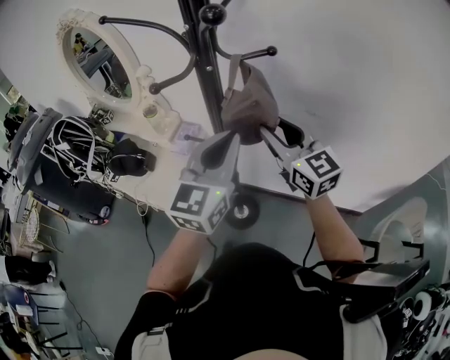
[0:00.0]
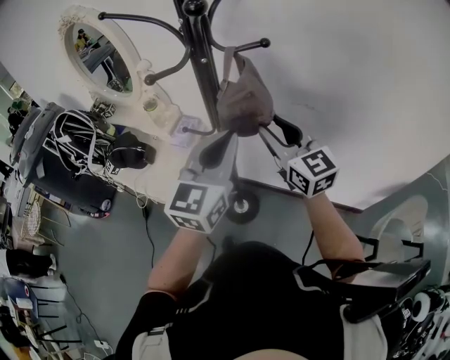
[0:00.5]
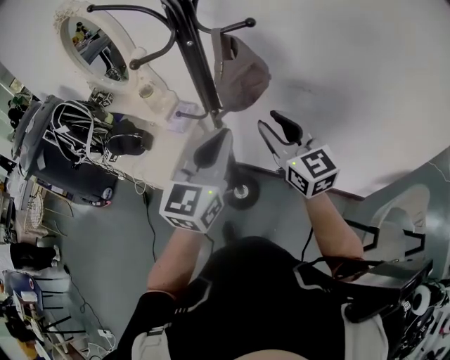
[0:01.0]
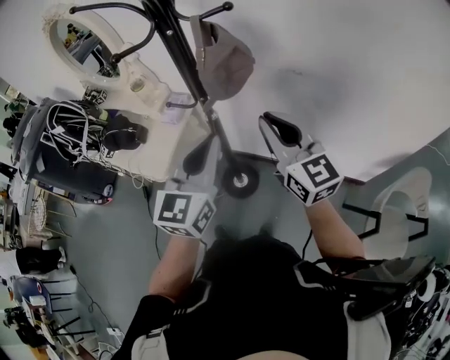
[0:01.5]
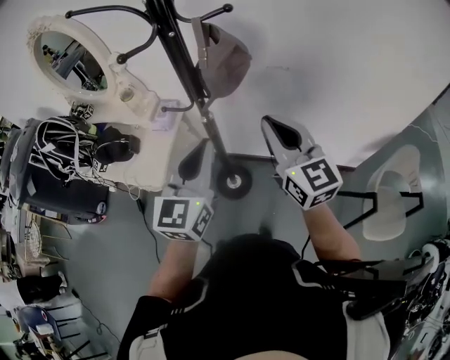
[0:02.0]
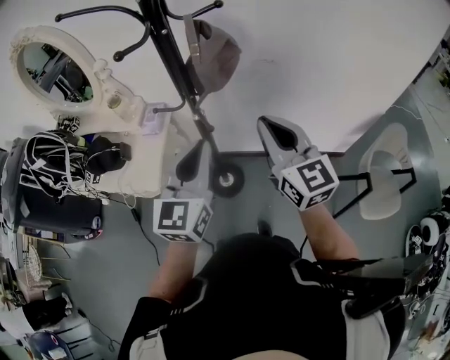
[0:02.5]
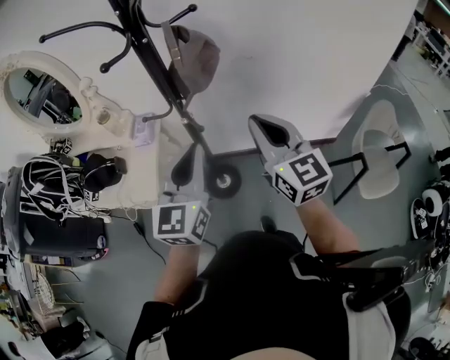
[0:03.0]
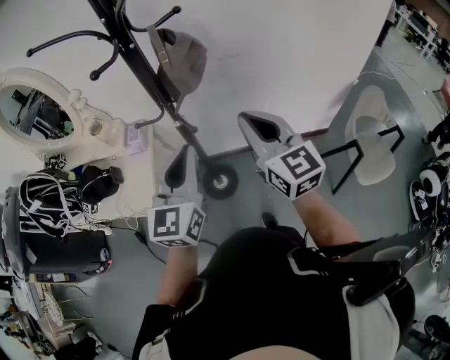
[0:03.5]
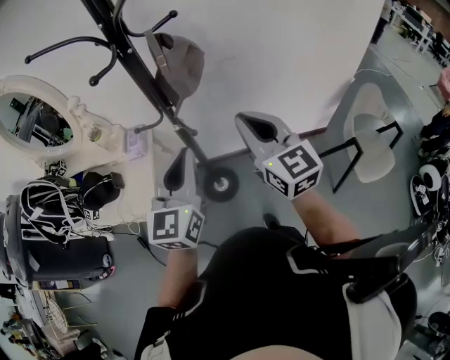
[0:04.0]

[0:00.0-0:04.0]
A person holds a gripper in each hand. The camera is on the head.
0:00.0 to 0:02.0: The left gripper heads backward and downward, covering about 10 cm. Meanwhile the right gripper goes about 15 cm backward, and closes up.
0:02.0 to 0:04.0: The right gripper travels backward by some 5 cm.

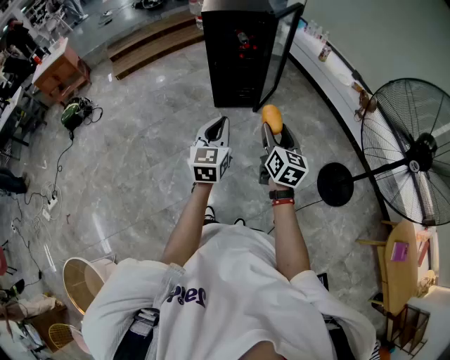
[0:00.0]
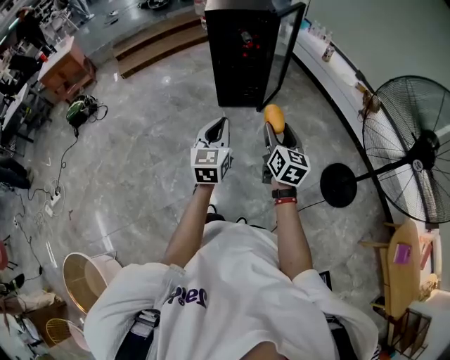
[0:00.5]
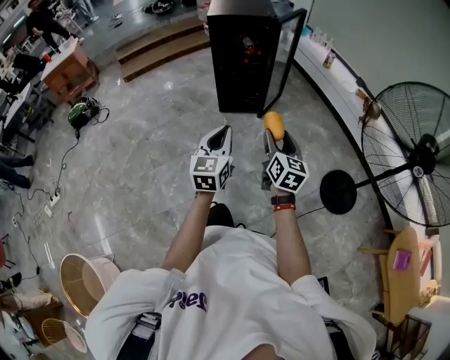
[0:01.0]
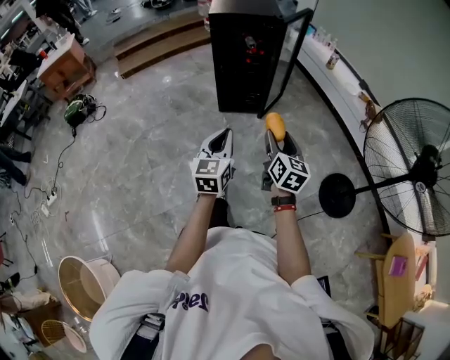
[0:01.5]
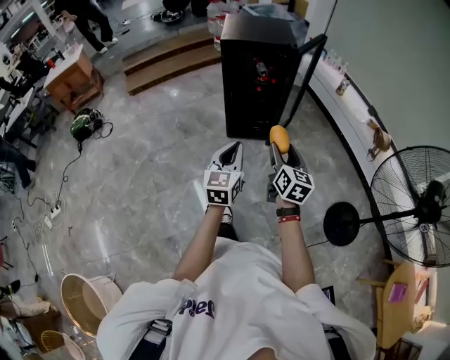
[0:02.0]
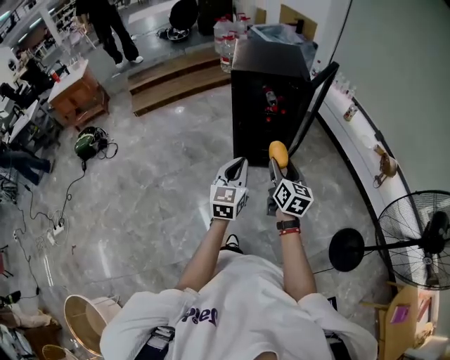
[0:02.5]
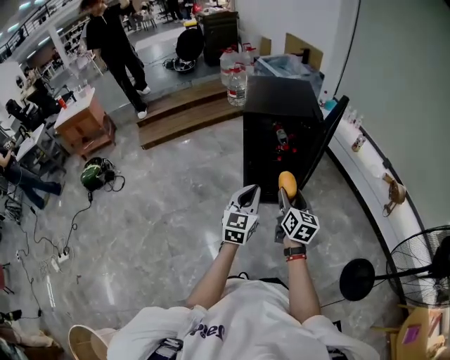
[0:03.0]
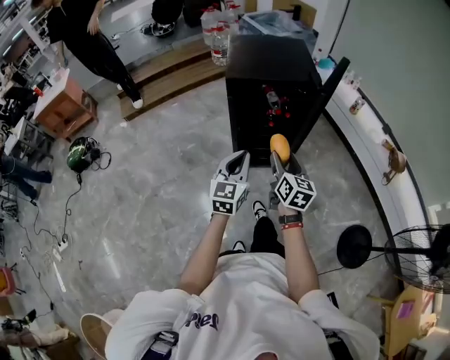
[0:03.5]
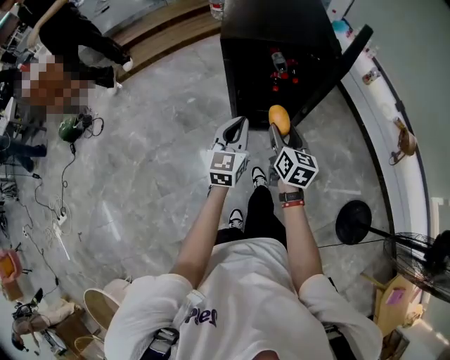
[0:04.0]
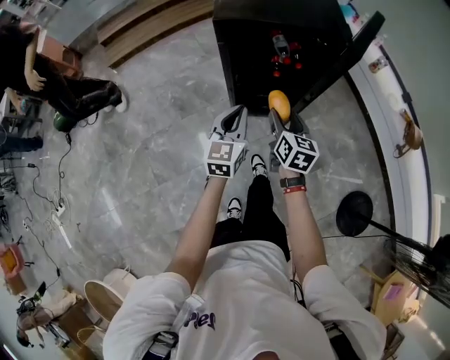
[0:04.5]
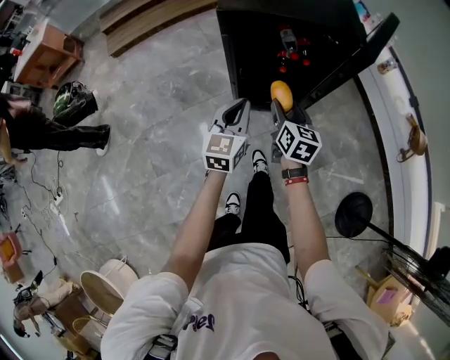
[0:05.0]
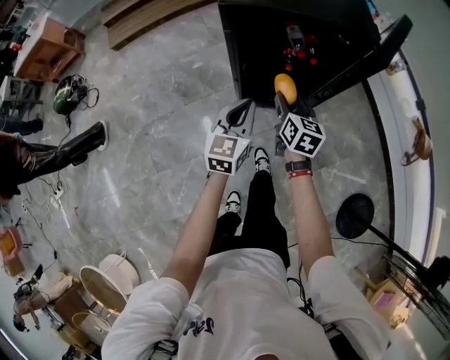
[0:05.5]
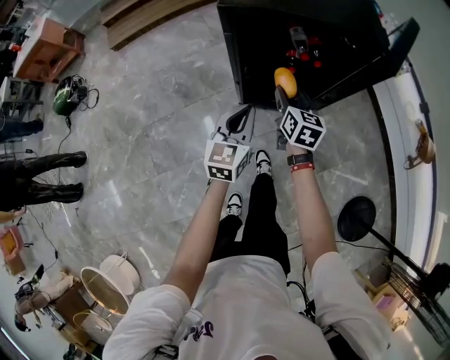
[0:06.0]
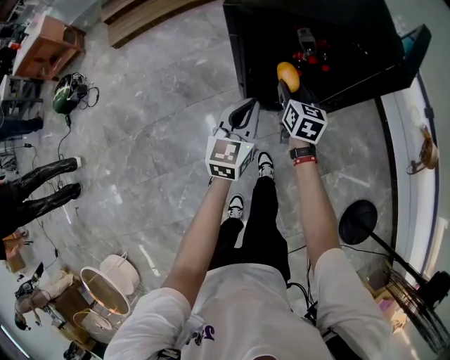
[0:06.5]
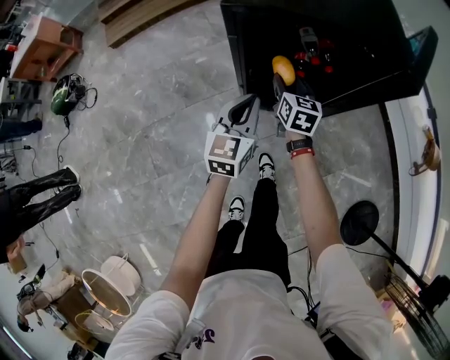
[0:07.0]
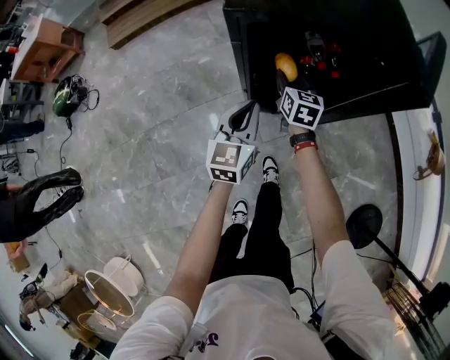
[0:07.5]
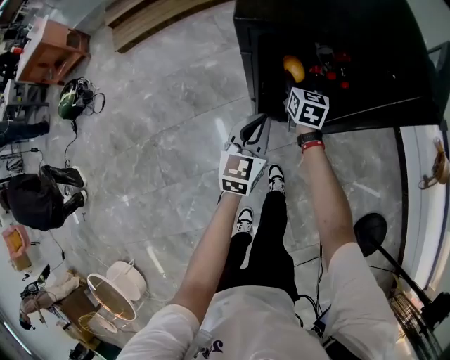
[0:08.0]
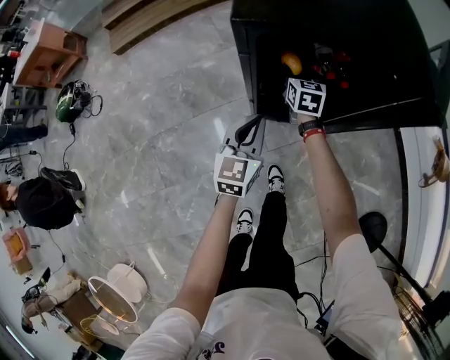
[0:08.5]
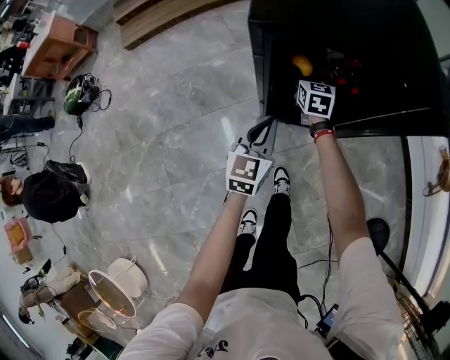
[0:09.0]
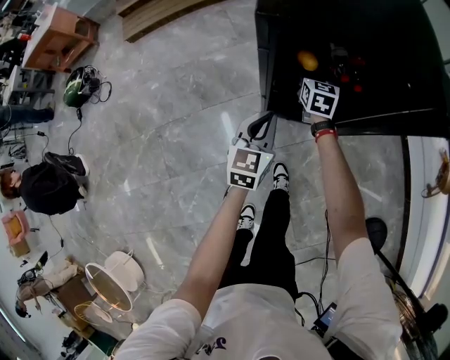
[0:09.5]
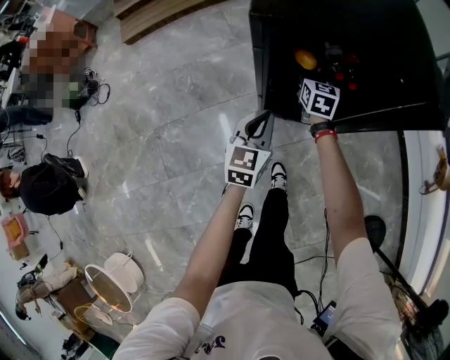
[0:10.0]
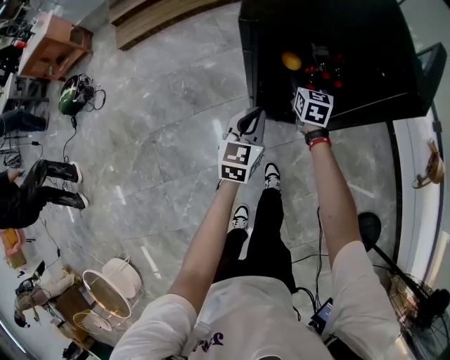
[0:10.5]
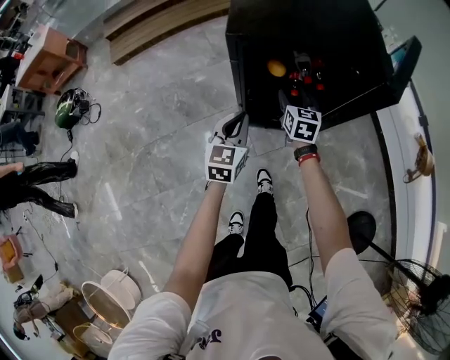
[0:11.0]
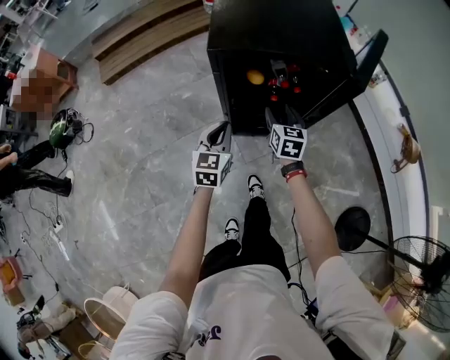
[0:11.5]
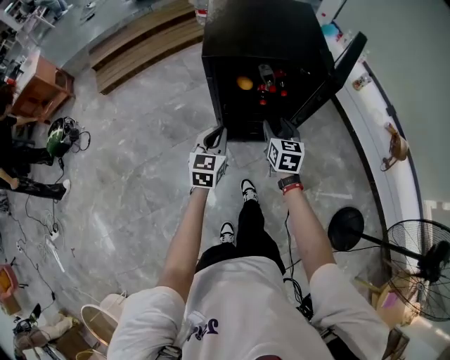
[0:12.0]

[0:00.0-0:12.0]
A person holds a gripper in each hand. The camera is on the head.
0:00.0 to 0:02.0: Both grippers move forward, about 20 cm.
0:02.0 to 0:04.0: Both grippers are carried forward, roughly 40 cm.
0:04.0 to 0:06.0: The right gripper moves forward and downward, roughly 25 cm. The left gripper goes roughly 15 cm downward and forward.
0:06.0 to 0:08.0: The right gripper goes some 20 cm forward and downward, while the left gripper is displaced forward and downward by some 10 cm.
0:08.0 to 0:10.0: The grippers stay close to where they were, moving slightly.
0:10.0 to 0:12.0: The right gripper heads backward and upward, covering approximately 30 cm. Meanwhile the left gripper is displaced upward and backward by about 20 cm.

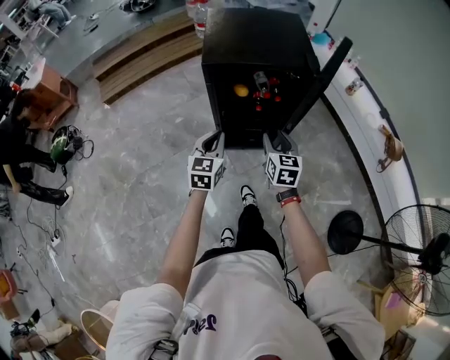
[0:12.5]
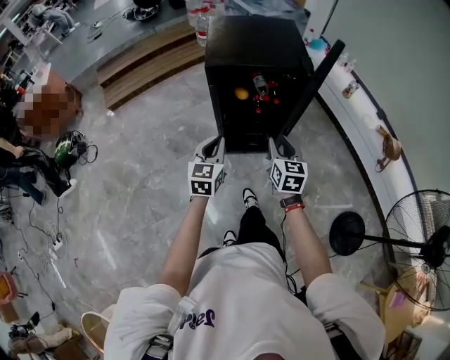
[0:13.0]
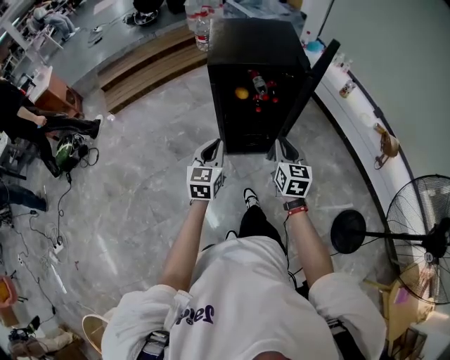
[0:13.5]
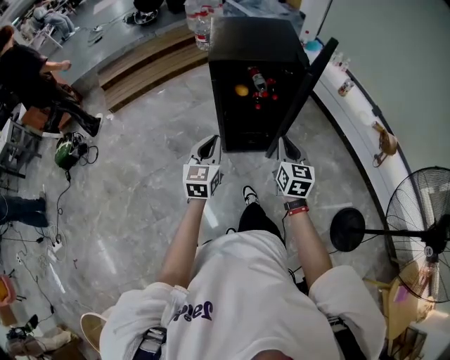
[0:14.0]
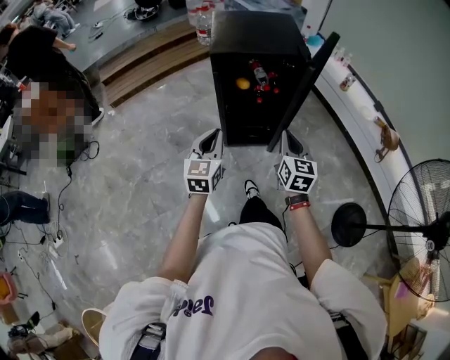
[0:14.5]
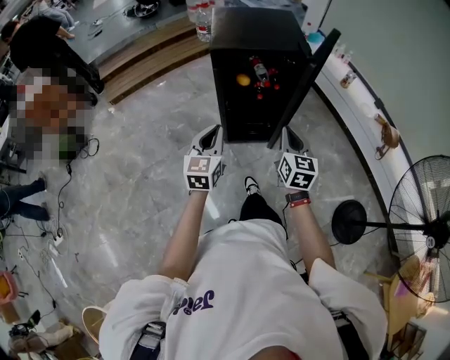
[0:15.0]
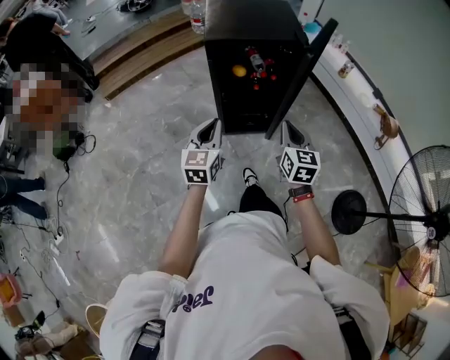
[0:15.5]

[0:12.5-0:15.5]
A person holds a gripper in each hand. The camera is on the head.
0:12.5 to 0:14.0: Both grippers move backward and upward, about 15 cm. The right gripper closes.
0:14.0 to 0:15.5: There are only small adjustments of the grippers.

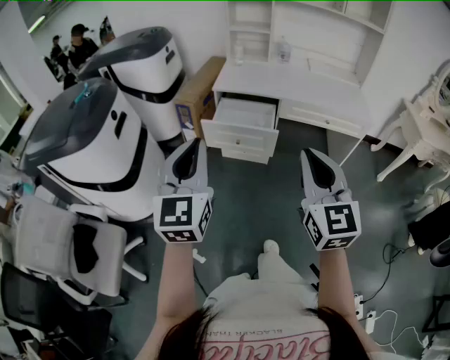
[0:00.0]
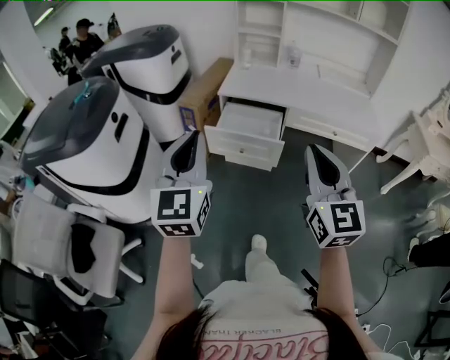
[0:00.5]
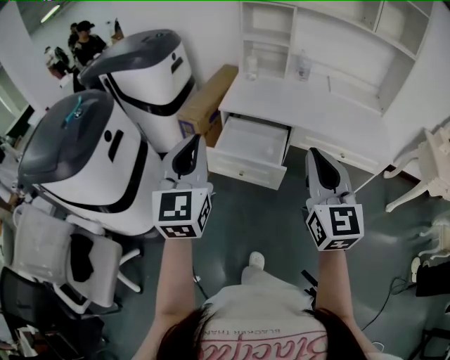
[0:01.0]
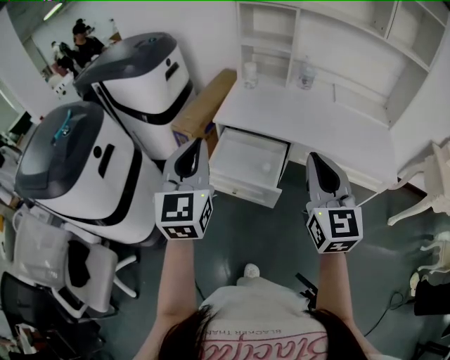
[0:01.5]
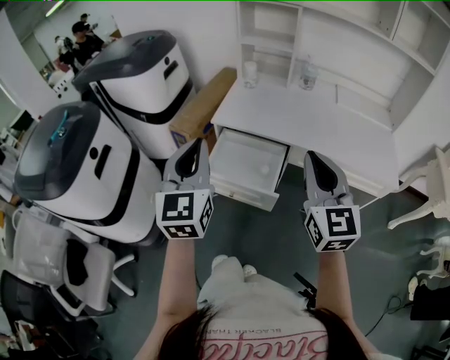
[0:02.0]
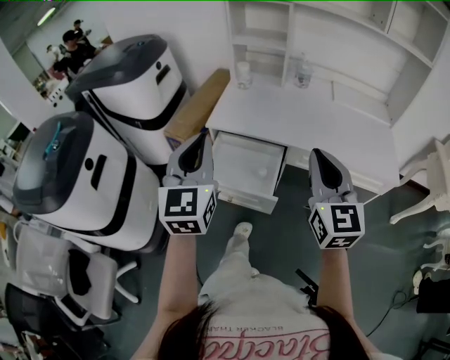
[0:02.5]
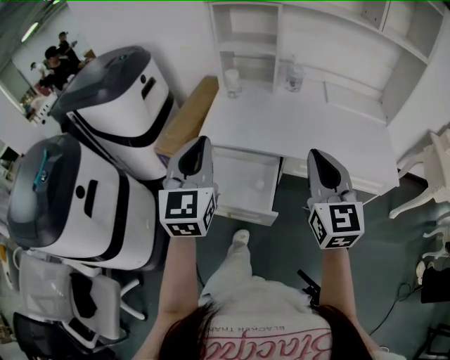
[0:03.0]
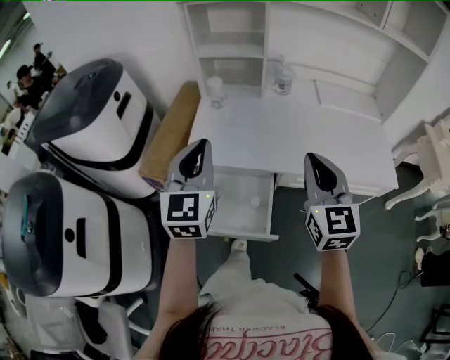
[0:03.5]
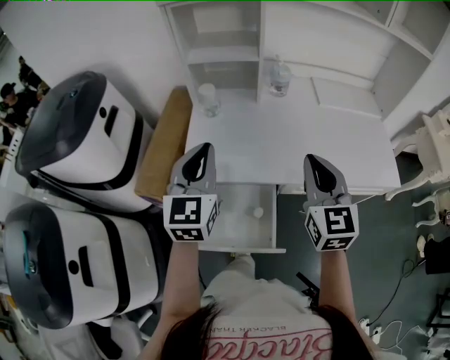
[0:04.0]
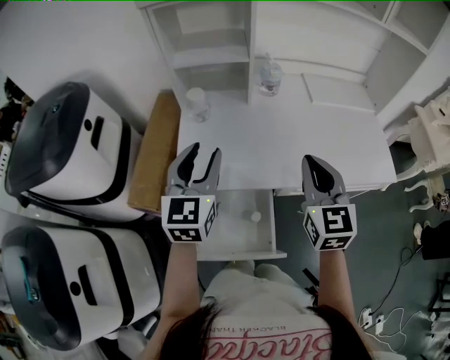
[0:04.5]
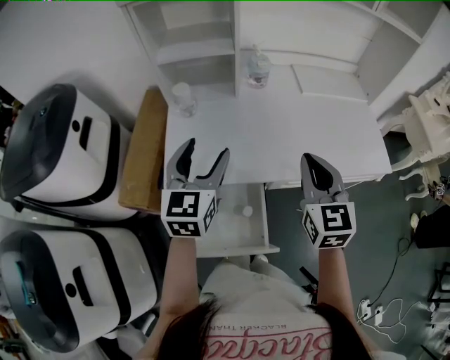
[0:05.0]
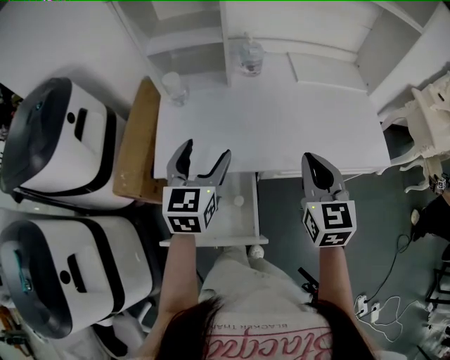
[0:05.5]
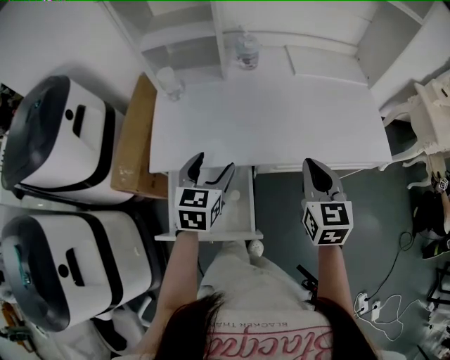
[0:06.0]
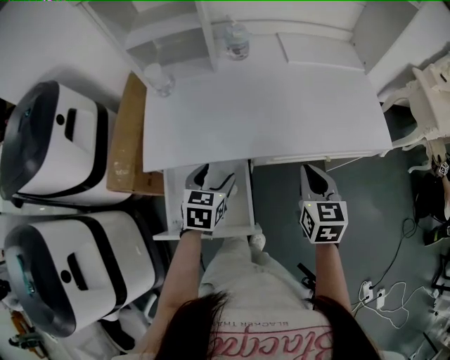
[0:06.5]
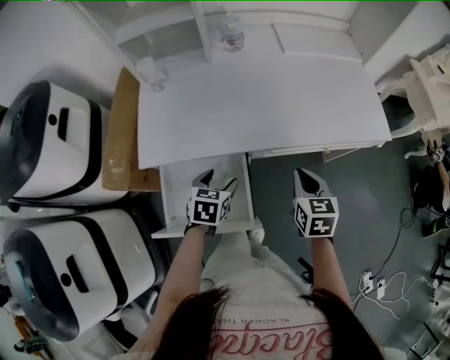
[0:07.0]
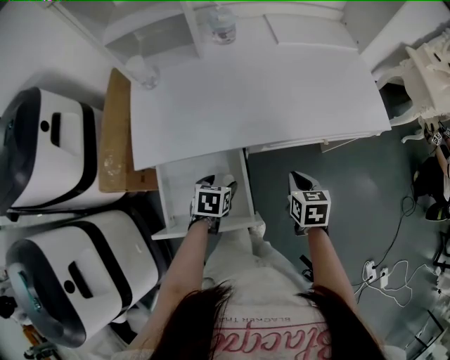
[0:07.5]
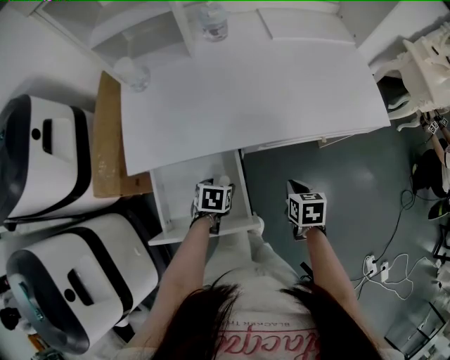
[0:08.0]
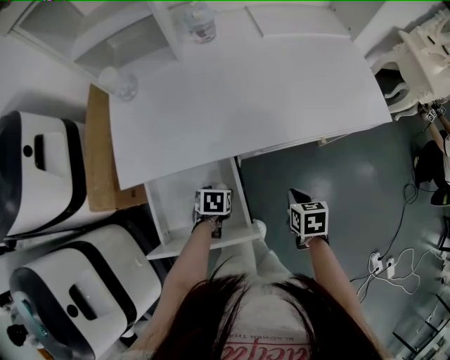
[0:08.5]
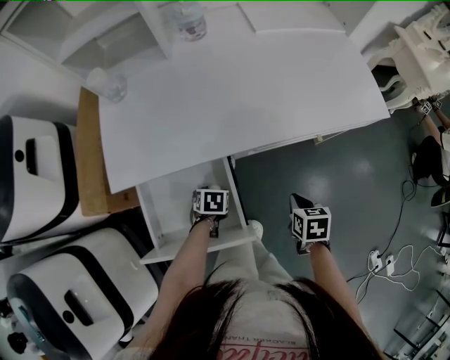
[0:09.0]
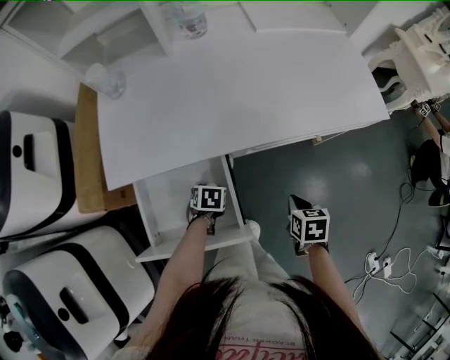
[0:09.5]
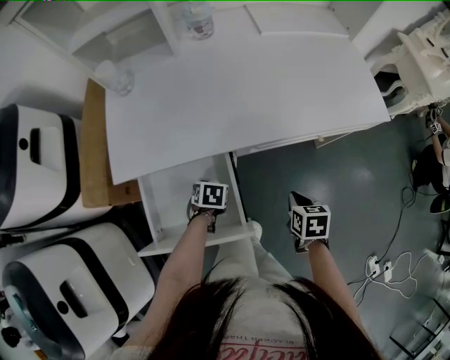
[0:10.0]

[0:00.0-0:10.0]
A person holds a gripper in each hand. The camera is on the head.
0:00.0 to 0:02.0: The two grippers go about 30 cm forward.
0:02.0 to 0:04.0: The two grippers go some 25 cm forward. The left gripper swivels about 20 degrees. The right gripper changes its angle by some 20 degrees.
0:04.0 to 0:06.0: The left gripper travels downward and to the right by roughly 20 cm, swivels about 30 degrees, and opens up. The right gripper goes about 15 cm to the right and downward.
0:06.0 to 0:08.0: The two grippers go some 25 cm downward. The right gripper tips its fingers downward by about 40 degrees. The left gripper tilts its fingers some 40 degrees downward.
0:08.0 to 0:10.0: The right gripper changes place by some 5 cm; the left gripper goes roughly 5 cm downward, and closes its fingers.
